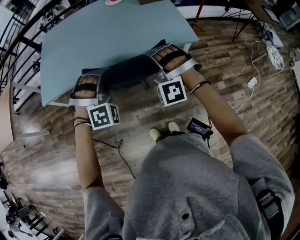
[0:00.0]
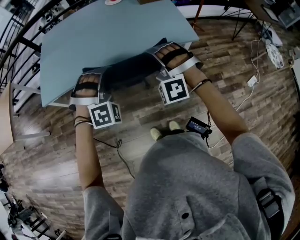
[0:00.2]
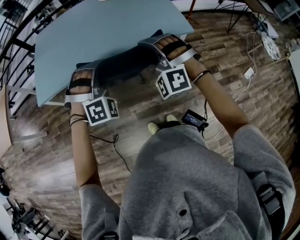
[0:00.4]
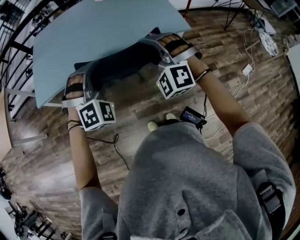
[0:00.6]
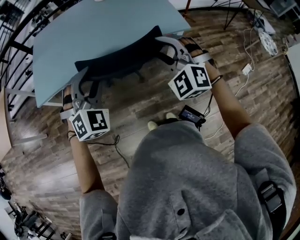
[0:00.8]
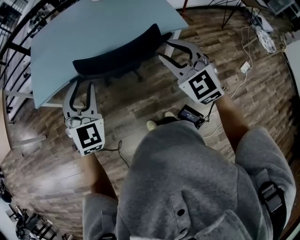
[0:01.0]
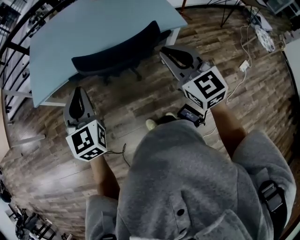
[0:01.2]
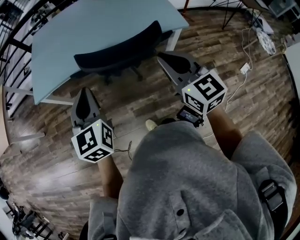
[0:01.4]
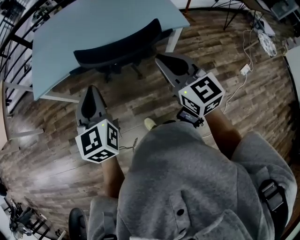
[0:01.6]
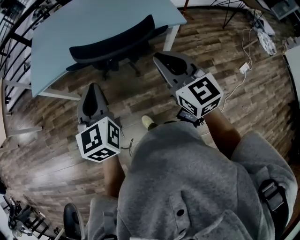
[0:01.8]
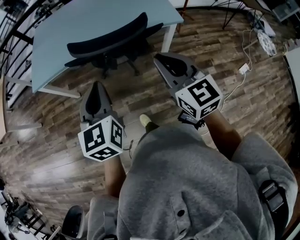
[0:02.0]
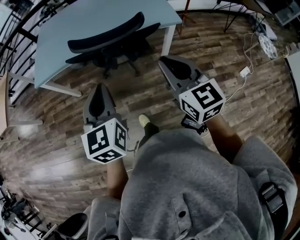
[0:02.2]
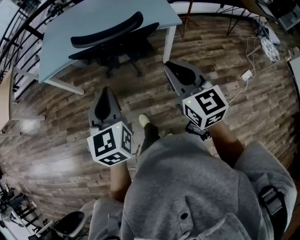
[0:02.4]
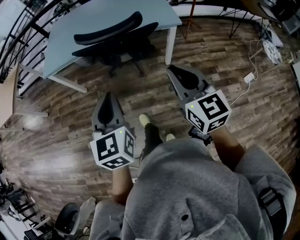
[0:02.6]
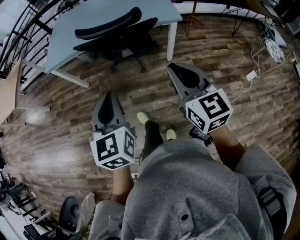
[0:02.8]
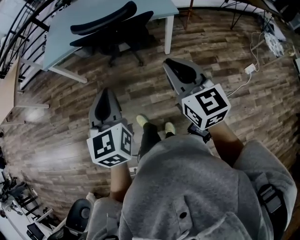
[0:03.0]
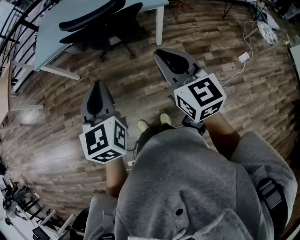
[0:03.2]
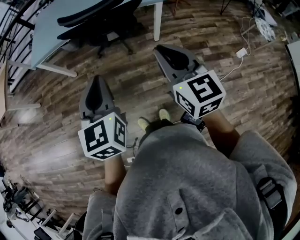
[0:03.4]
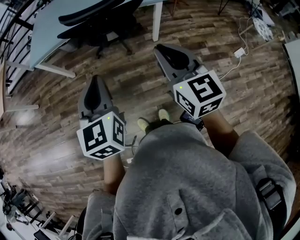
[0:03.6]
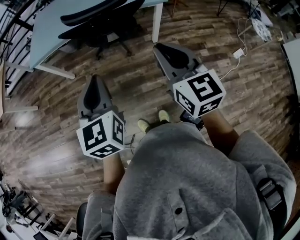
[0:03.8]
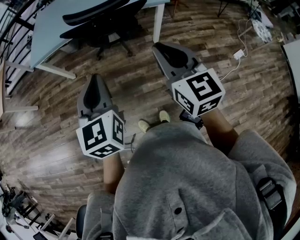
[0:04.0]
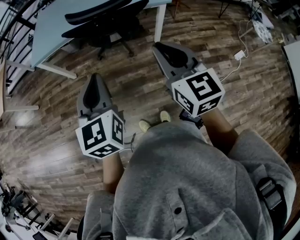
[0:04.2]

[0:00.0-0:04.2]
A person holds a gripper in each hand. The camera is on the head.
0:00.0 to 0:01.4: The left gripper shifts about 15 cm to the left and backward, twists roughly 90 degrees counterclockwise, seen from behind, and opens, then closes again. The right gripper heads backward and upward, covering roughly 15 cm, rolls clockwise, seen from behind, by some 80 degrees, and opens and closes again.
0:01.4 to 0:02.8: Both grippers travel together backward, roughly 30 cm.
0:02.8 to 0:04.2: Both grippers travel together to the left, some 5 cm.

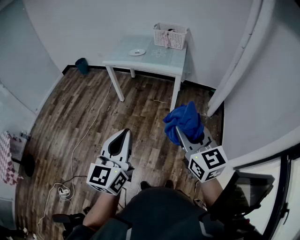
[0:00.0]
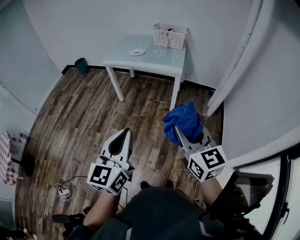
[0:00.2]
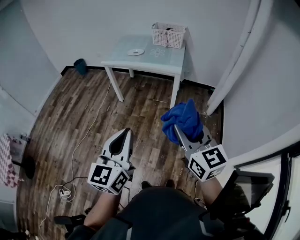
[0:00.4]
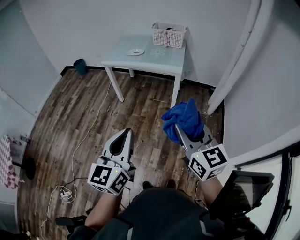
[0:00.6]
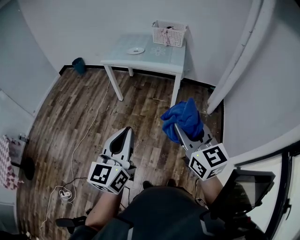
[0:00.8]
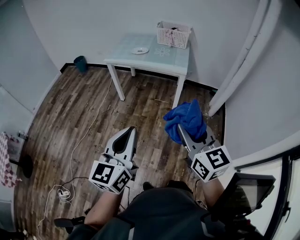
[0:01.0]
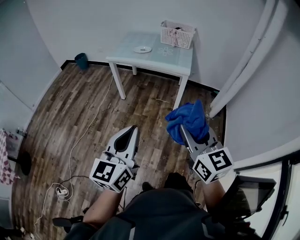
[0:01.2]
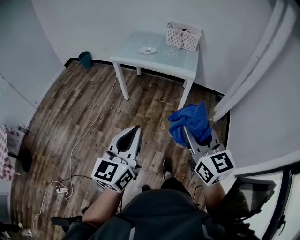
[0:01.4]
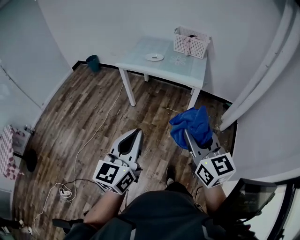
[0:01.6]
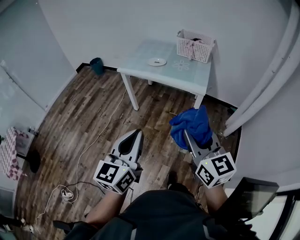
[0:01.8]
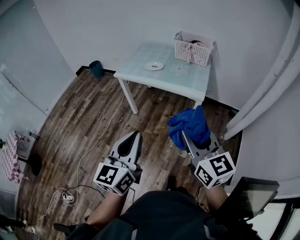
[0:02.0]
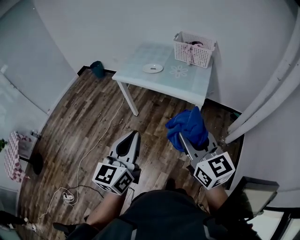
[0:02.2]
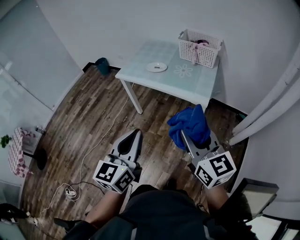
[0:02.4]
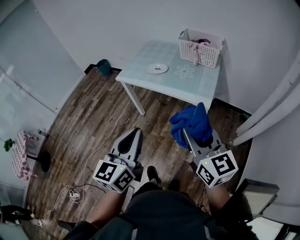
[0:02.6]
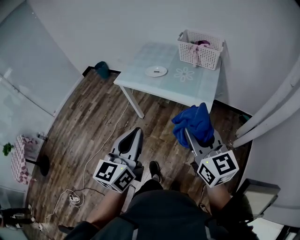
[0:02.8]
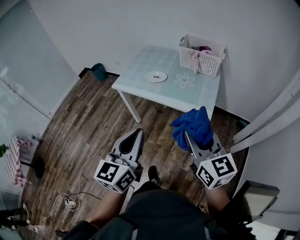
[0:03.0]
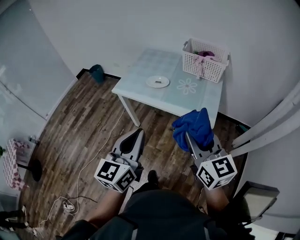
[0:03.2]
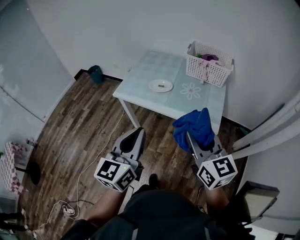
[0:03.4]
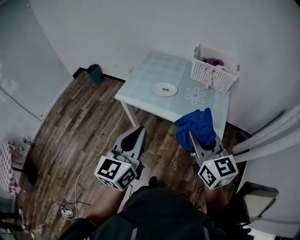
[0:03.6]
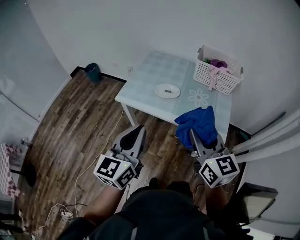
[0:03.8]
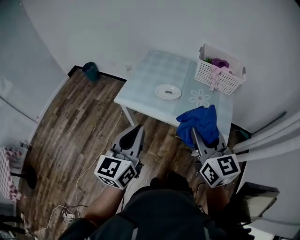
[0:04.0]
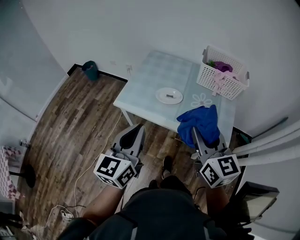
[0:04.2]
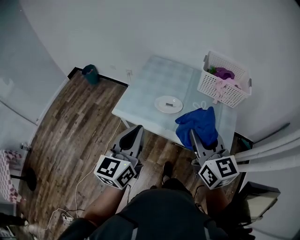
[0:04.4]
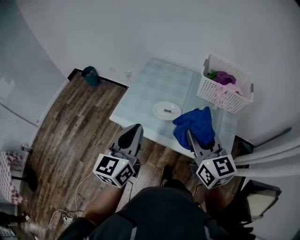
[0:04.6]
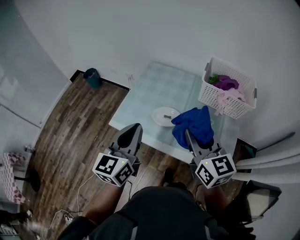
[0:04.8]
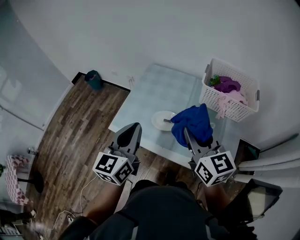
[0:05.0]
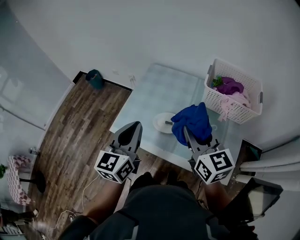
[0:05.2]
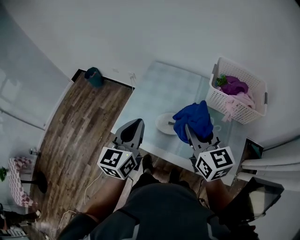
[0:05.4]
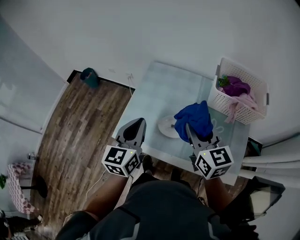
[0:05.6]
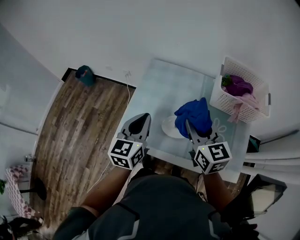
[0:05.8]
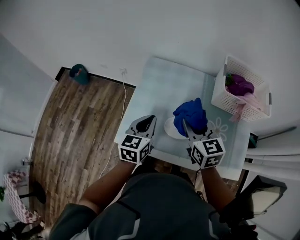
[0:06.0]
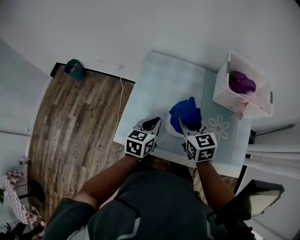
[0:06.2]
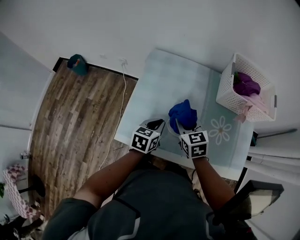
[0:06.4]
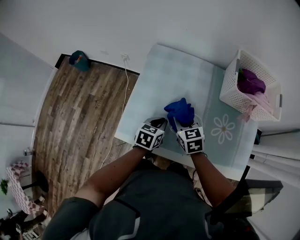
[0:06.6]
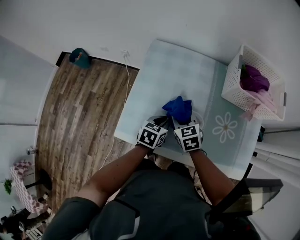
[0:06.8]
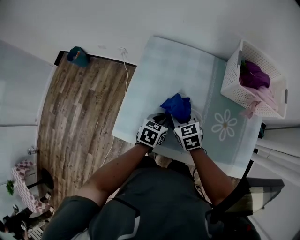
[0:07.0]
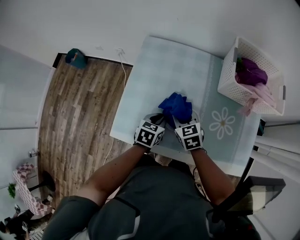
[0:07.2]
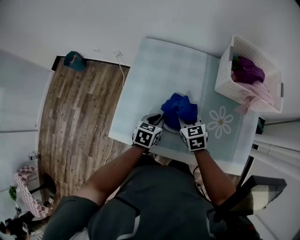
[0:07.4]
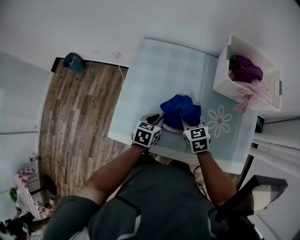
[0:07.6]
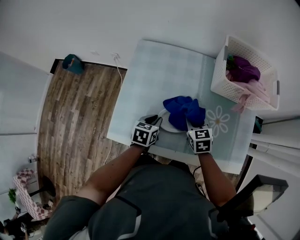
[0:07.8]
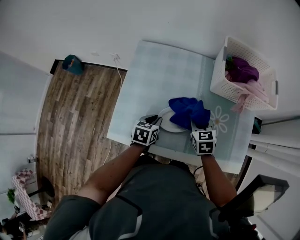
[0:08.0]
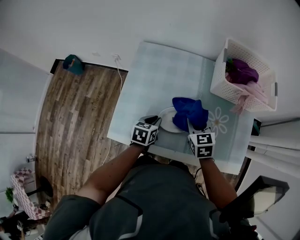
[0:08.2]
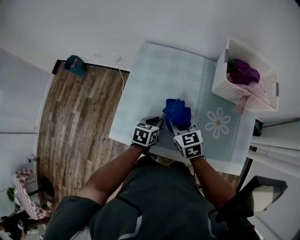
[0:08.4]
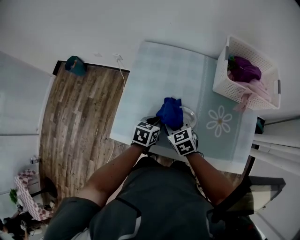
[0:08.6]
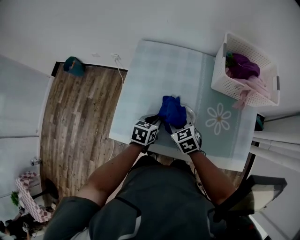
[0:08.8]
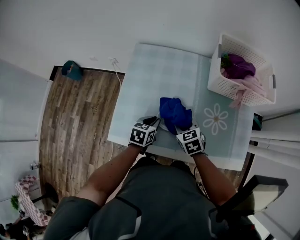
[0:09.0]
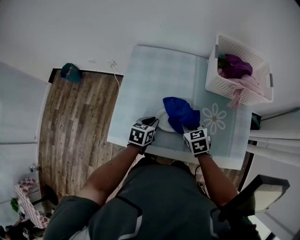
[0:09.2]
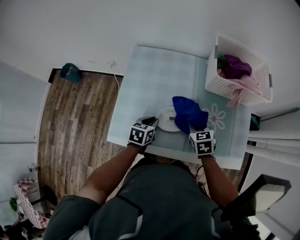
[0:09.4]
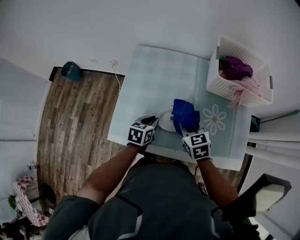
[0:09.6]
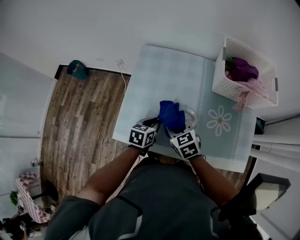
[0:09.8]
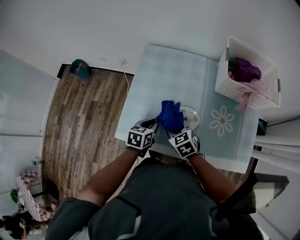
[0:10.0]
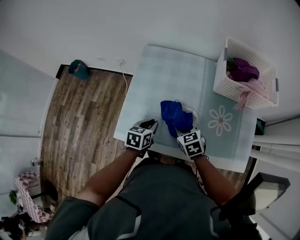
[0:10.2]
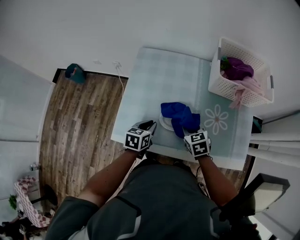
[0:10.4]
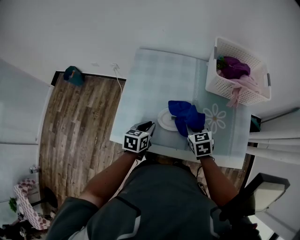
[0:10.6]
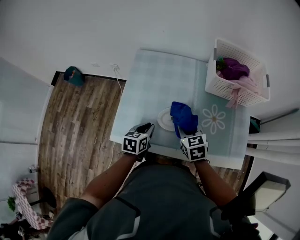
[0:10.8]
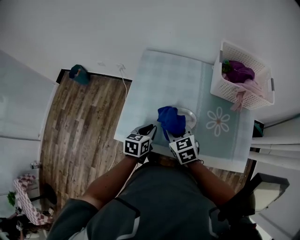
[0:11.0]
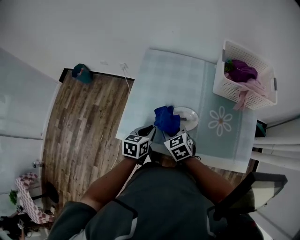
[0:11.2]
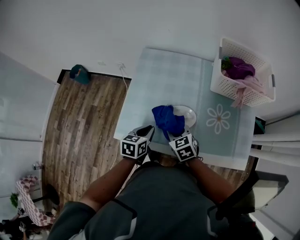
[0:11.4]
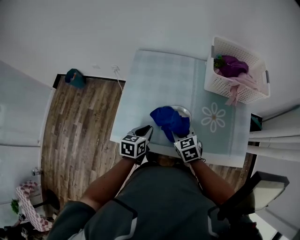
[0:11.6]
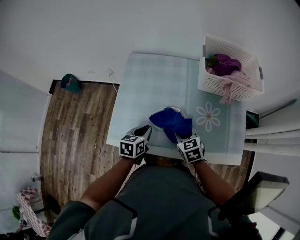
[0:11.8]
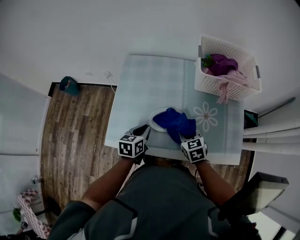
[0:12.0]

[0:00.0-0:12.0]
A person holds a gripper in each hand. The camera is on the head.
0:00.0 to 0:01.6: The left gripper travels forward by approximately 10 cm. The right gripper travels forward and to the left by about 15 cm.
0:01.6 to 0:03.0: Both grippers move forward, about 30 cm.
0:03.0 to 0:04.4: Both grippers move forward and to the left, roughly 30 cm.
0:04.4 to 0:06.0: Both grippers move forward and downward, roughly 30 cm. The left gripper swivels about 20 degrees.
0:06.0 to 0:07.6: The grippers both shift downward by roughly 20 cm. The left gripper rotates some 30 degrees, while the right gripper turns by about 20 degrees.
0:07.6 to 0:09.0: The right gripper swings left and right, roughly 15 cm each way, with 2 reversals.
0:09.0 to 0:10.4: The right gripper swings left and right, approximately 15 cm each way, with 2 reversals.
0:10.4 to 0:12.0: The right gripper travels to the left and back again, roughly 10 cm each way.

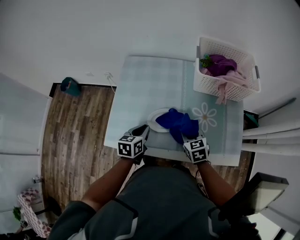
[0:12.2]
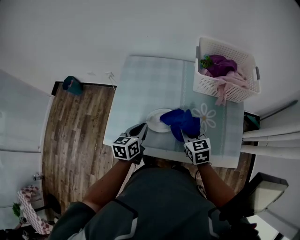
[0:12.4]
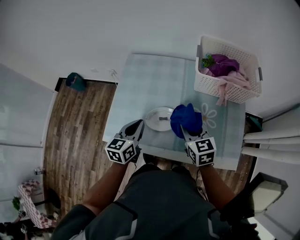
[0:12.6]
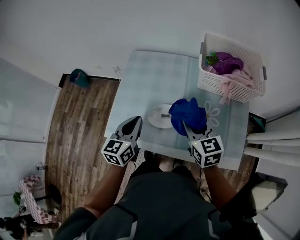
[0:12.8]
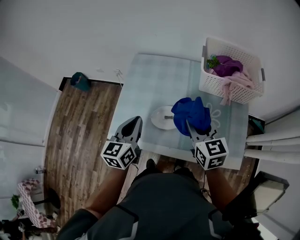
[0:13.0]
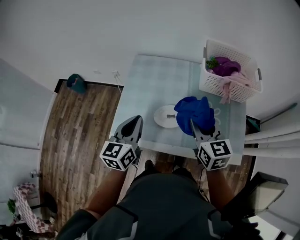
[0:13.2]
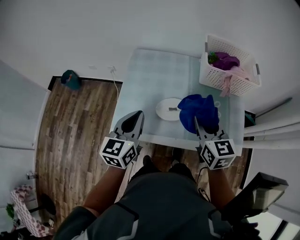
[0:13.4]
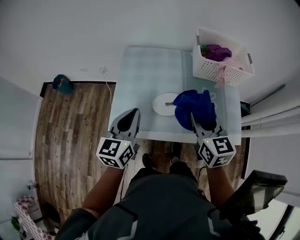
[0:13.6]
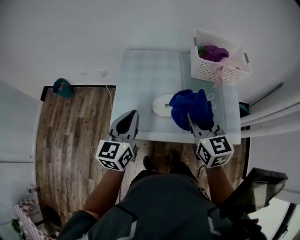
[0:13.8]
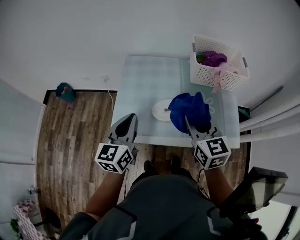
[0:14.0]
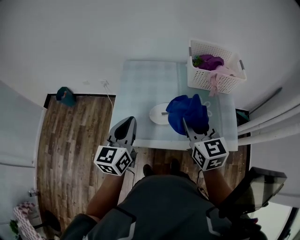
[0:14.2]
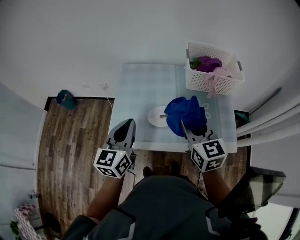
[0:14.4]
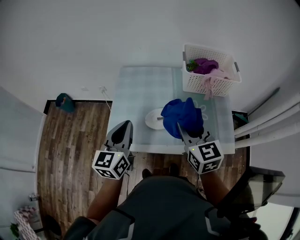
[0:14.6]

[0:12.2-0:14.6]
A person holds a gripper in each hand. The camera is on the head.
0:12.2 to 0:13.4: The two grippers go approximately 20 cm upward. The left gripper rotates some 30 degrees; the right gripper turns by roughly 20 degrees.
0:13.4 to 0:14.6: The right gripper shifts by some 5 cm.

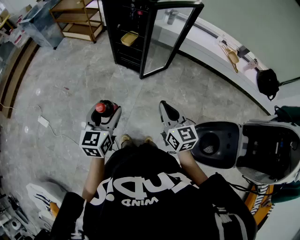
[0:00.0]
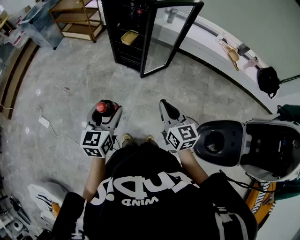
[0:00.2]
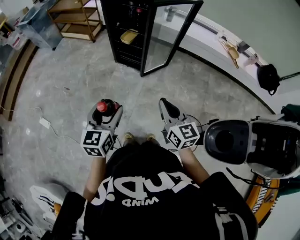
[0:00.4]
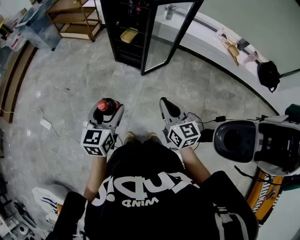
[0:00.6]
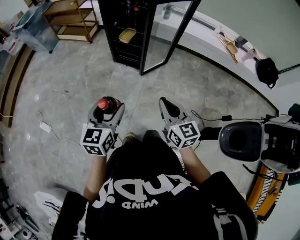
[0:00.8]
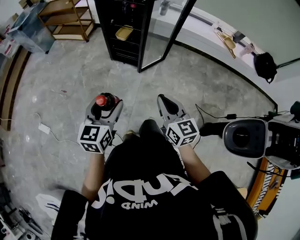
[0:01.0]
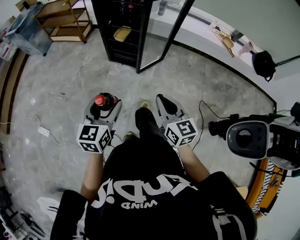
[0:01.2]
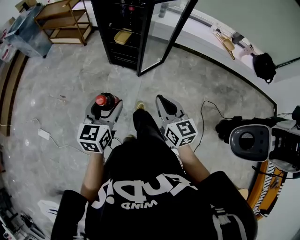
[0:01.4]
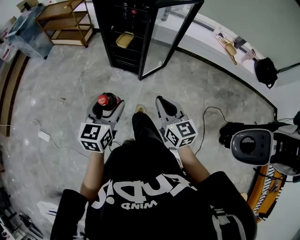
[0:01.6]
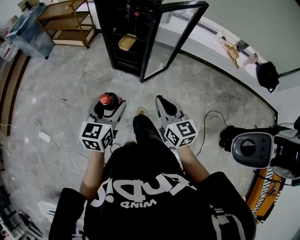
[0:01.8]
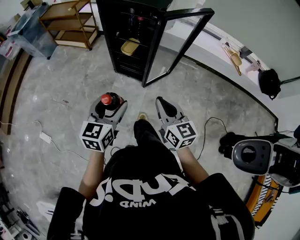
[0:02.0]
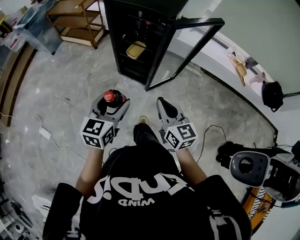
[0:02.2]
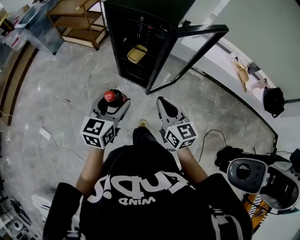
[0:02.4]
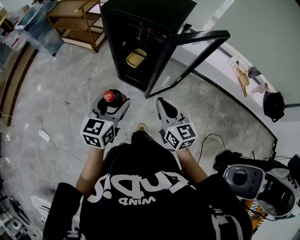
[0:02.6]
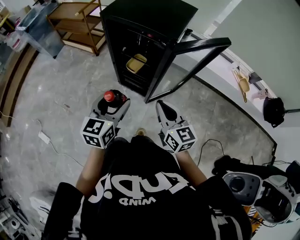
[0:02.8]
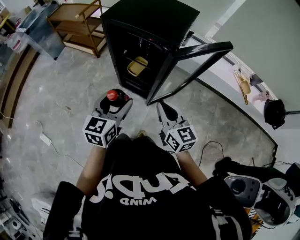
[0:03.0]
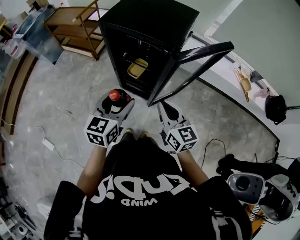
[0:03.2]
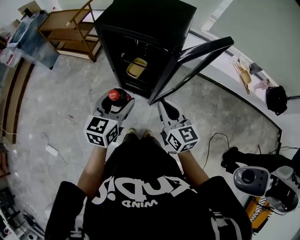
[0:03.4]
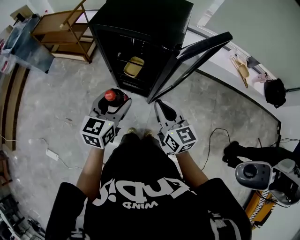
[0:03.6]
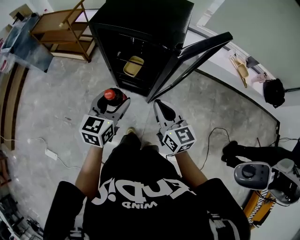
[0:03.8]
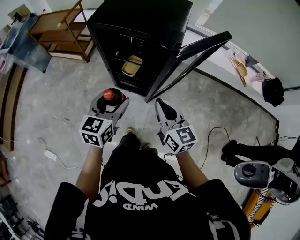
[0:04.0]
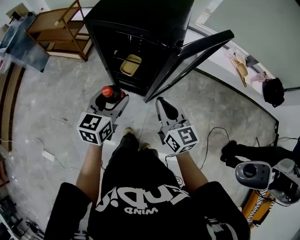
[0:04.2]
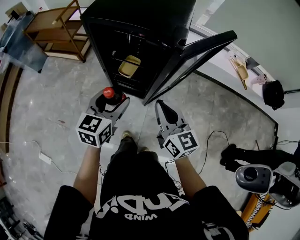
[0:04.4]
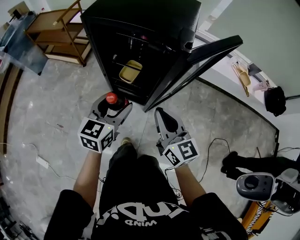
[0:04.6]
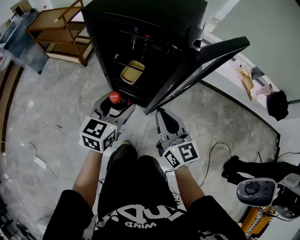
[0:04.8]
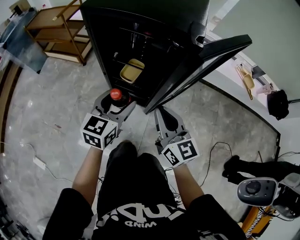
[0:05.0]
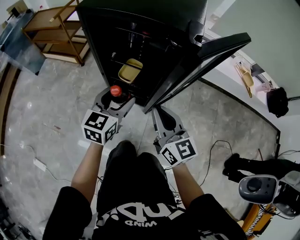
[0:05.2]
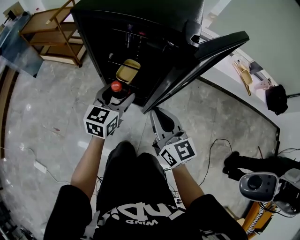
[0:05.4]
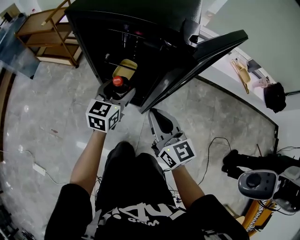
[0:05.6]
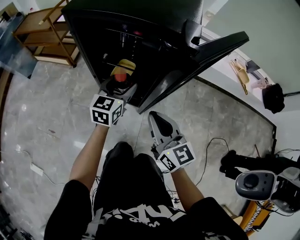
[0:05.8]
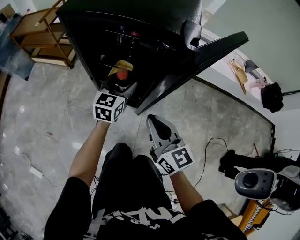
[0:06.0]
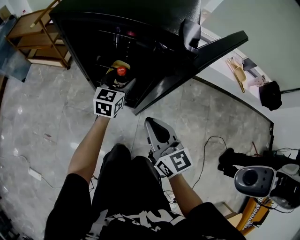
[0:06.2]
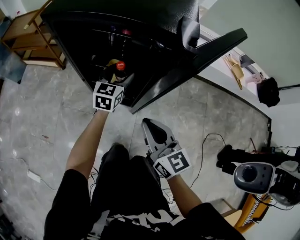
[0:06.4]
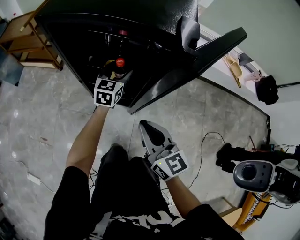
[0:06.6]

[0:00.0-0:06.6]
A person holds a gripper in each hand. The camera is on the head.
0:00.0 to 0:01.6: The right gripper travels forward and to the left by some 10 cm; the left gripper goes approximately 10 cm forward.
0:01.6 to 0:03.2: Both grippers move forward, roughly 30 cm.
0:03.2 to 0:05.0: The right gripper heads downward, covering approximately 10 cm; the left gripper shifts about 15 cm downward and forward.
0:05.0 to 0:06.6: The left gripper goes approximately 25 cm forward and downward.
